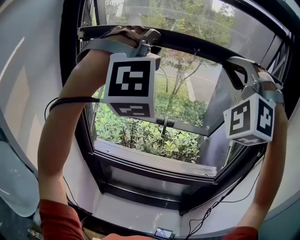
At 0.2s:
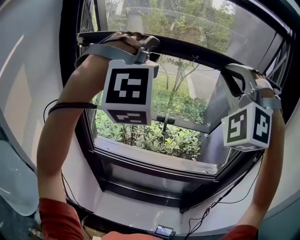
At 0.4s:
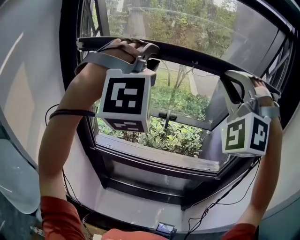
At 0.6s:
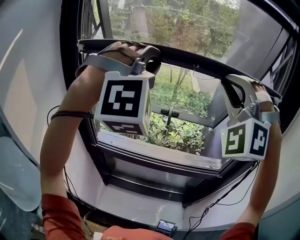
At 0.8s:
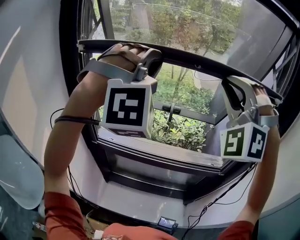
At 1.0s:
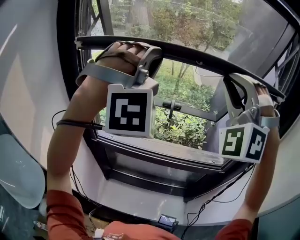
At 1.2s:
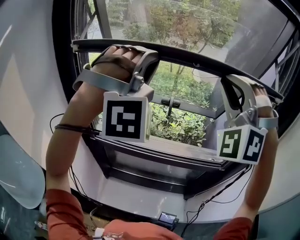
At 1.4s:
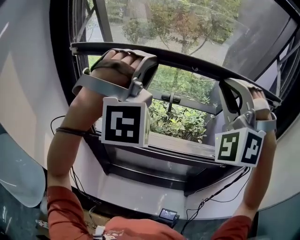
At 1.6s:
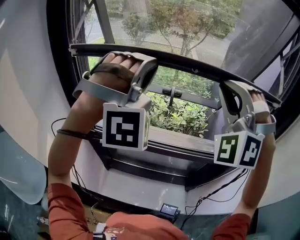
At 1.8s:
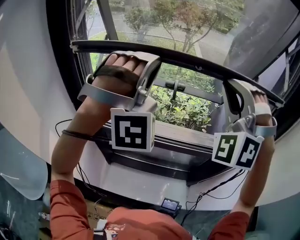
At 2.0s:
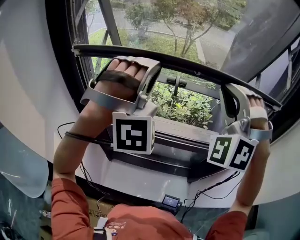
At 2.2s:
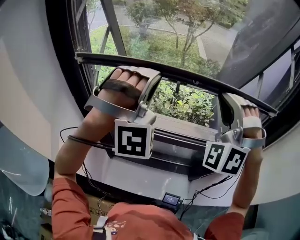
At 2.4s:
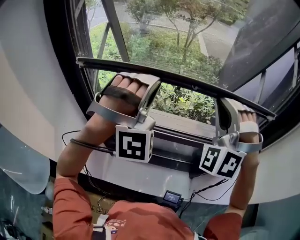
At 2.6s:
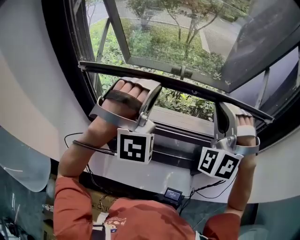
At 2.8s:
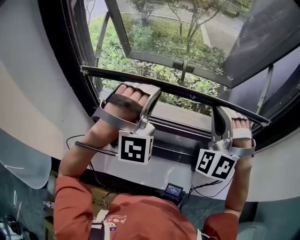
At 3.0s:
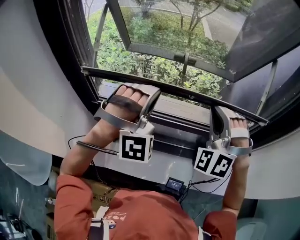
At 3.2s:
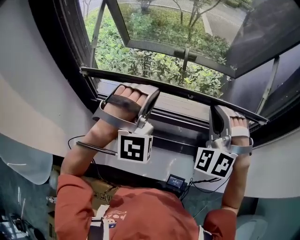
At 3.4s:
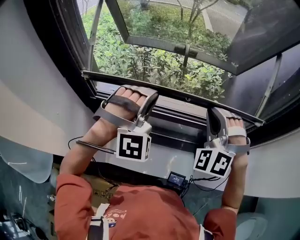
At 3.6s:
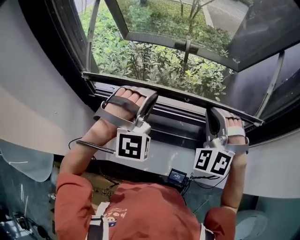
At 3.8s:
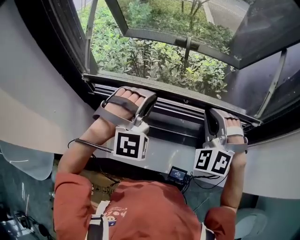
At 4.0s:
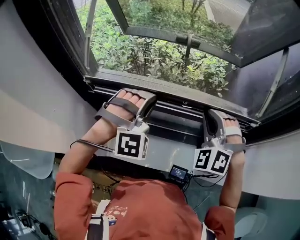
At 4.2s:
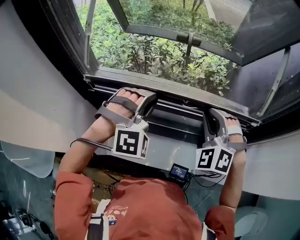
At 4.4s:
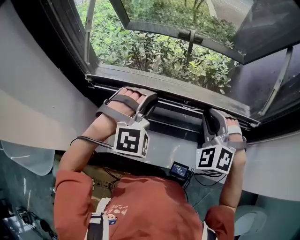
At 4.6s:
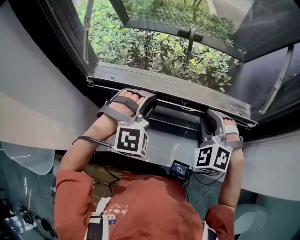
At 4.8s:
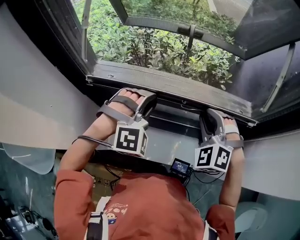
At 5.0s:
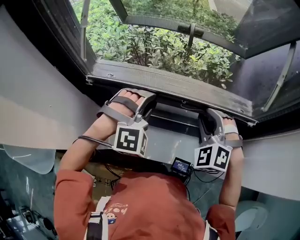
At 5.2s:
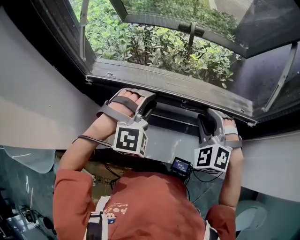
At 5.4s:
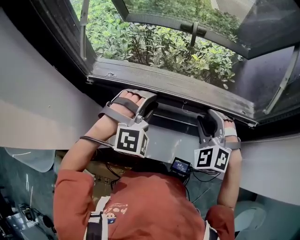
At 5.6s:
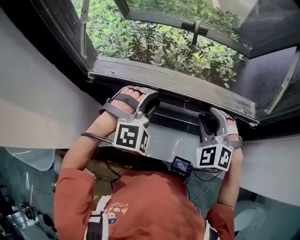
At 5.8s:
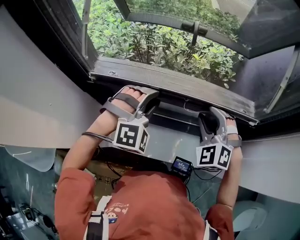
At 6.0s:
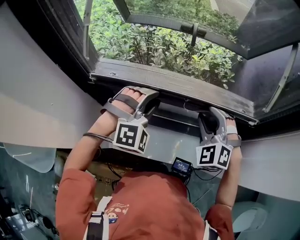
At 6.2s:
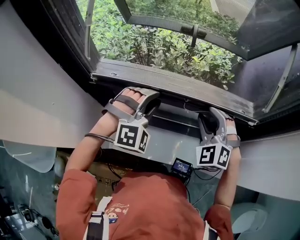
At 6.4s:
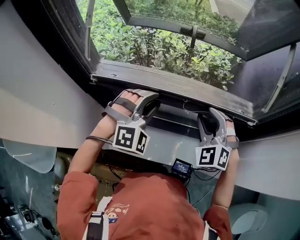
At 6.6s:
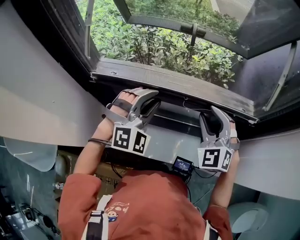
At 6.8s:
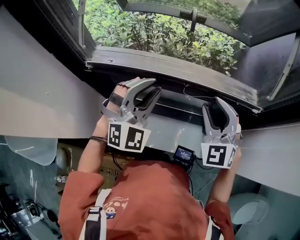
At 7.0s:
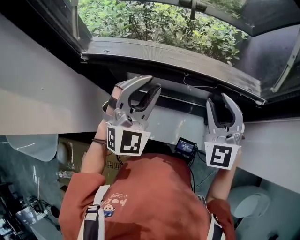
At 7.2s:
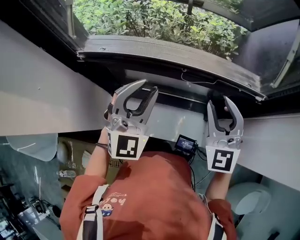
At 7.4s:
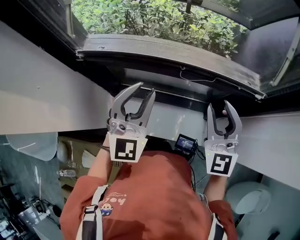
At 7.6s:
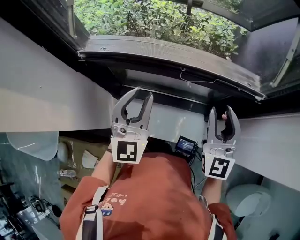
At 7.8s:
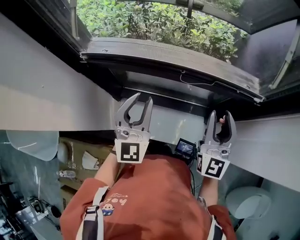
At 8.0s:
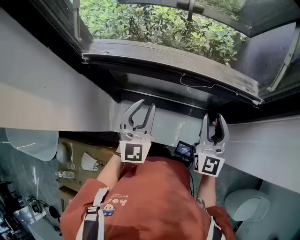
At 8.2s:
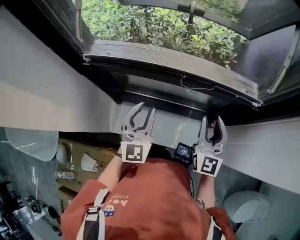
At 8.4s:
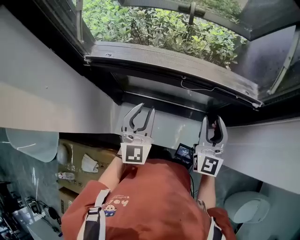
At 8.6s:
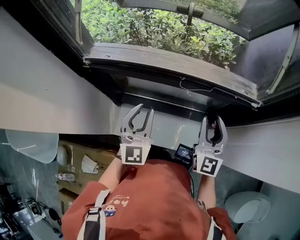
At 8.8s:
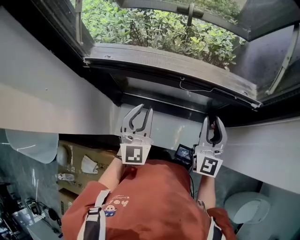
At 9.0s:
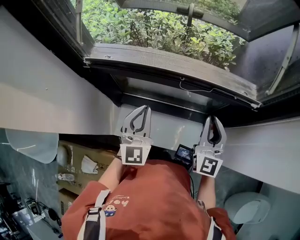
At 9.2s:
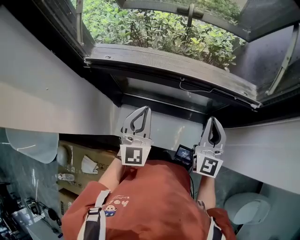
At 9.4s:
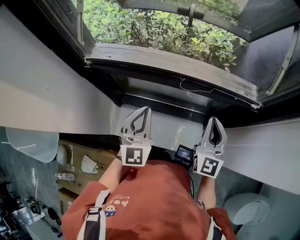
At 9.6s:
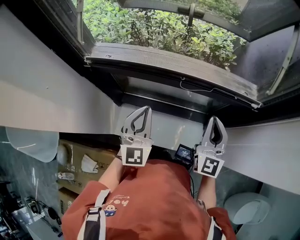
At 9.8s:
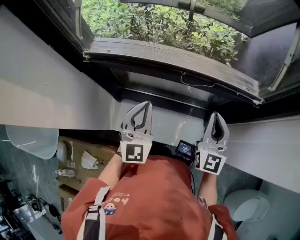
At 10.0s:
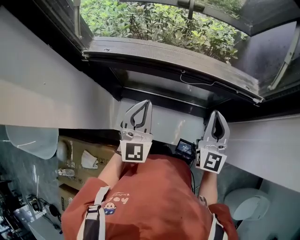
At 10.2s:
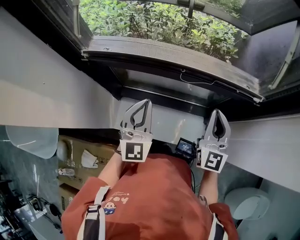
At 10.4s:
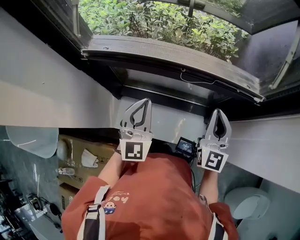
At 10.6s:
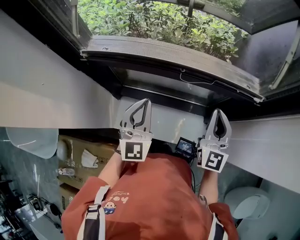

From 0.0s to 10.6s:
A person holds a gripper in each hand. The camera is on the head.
From 0.0s to 1.6s: The grippers both shift downward by some 15 cm.
From 1.6s to 3.0s: Both grippers move downward, roughly 15 cm.
From 3.0s to 4.6s: The two grippers go about 15 cm downward. The left gripper swivels approximately 30 degrees, while the right gripper changes its angle by some 30 degrees.
From 4.6s to 6.0s: The right gripper opens up.
From 6.0s to 7.6s: The left gripper is displaced backward by roughly 10 cm, and rolls counterclockwise, seen from behind, by some 50 degrees. Meanwhile the right gripper shifts some 10 cm backward and to the right, and points its fingers some 30 degrees further upward.
From 7.6s to 9.0s: Both grippers travel together downward, some 5 cm. The left gripper closes up. Meanwhile the right gripper closes.
From 9.0s to 10.6s: Both grippers stay about where they are.

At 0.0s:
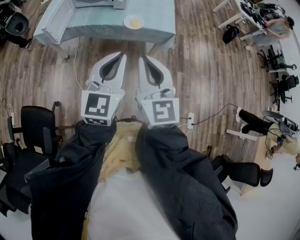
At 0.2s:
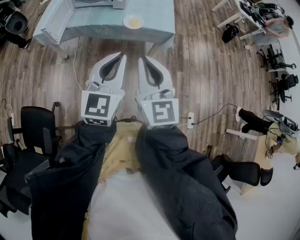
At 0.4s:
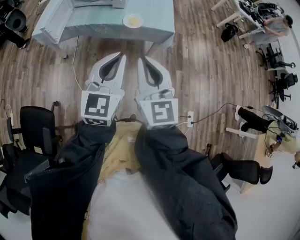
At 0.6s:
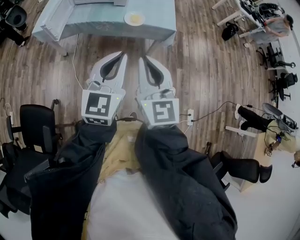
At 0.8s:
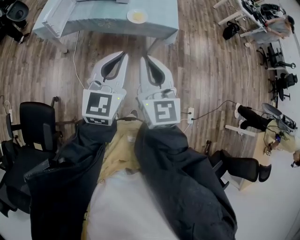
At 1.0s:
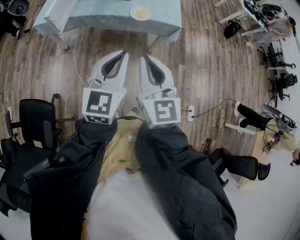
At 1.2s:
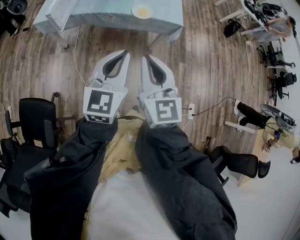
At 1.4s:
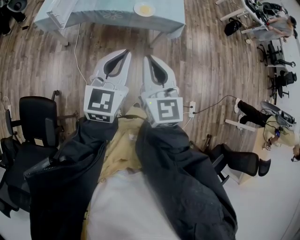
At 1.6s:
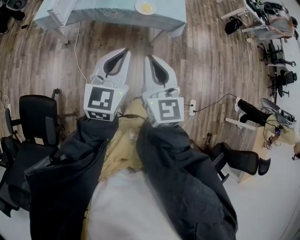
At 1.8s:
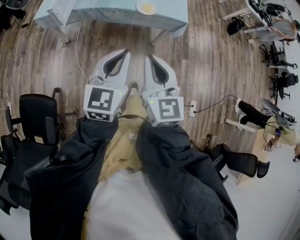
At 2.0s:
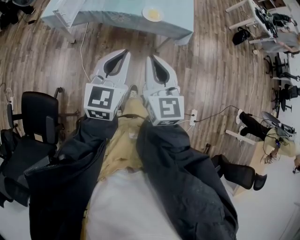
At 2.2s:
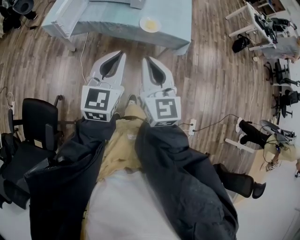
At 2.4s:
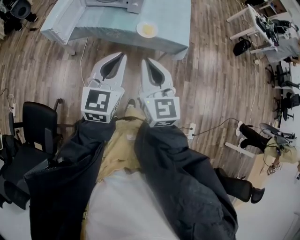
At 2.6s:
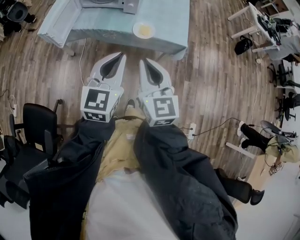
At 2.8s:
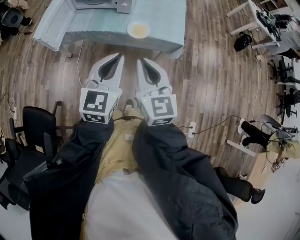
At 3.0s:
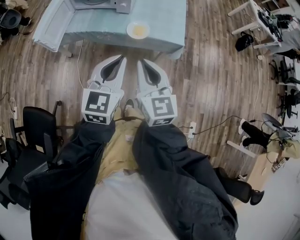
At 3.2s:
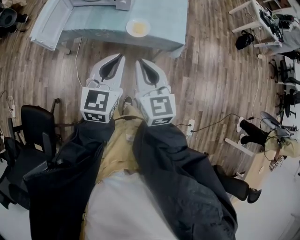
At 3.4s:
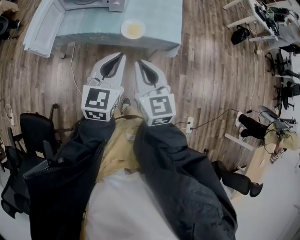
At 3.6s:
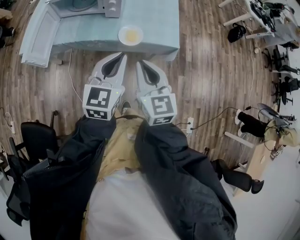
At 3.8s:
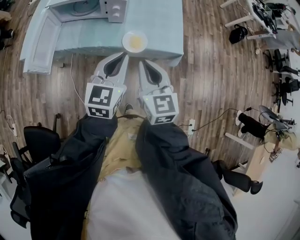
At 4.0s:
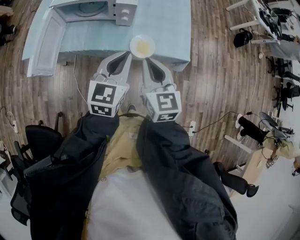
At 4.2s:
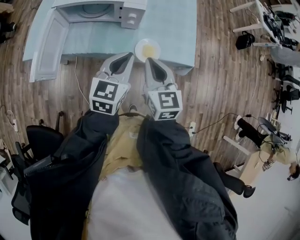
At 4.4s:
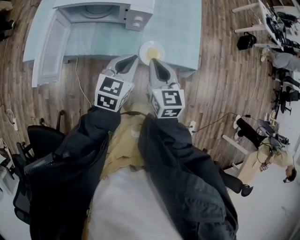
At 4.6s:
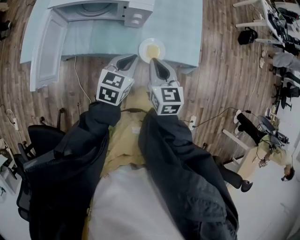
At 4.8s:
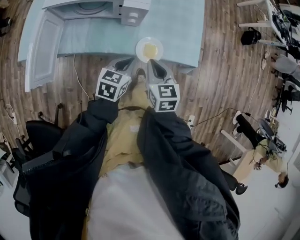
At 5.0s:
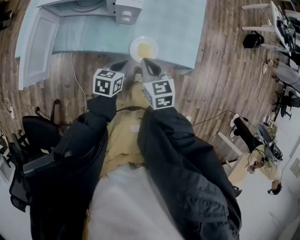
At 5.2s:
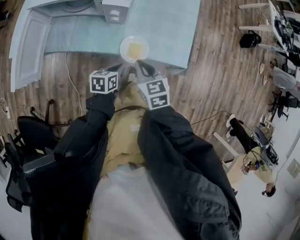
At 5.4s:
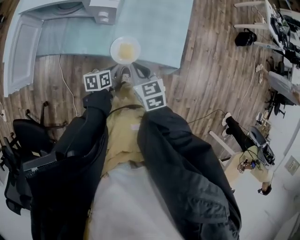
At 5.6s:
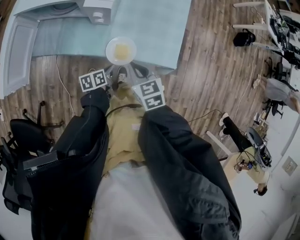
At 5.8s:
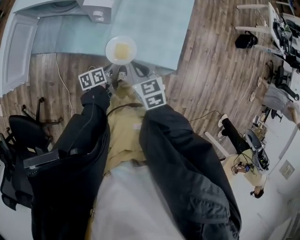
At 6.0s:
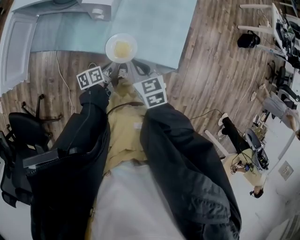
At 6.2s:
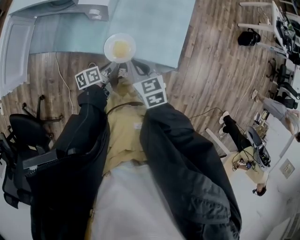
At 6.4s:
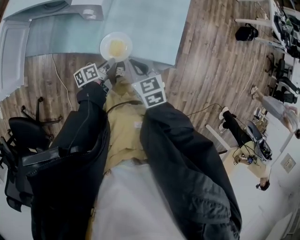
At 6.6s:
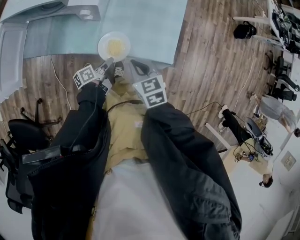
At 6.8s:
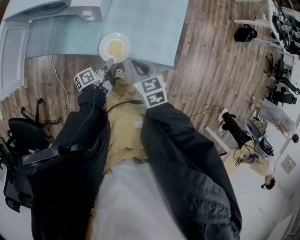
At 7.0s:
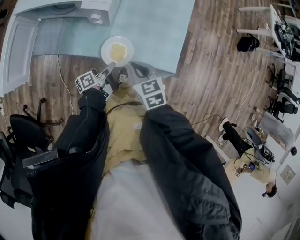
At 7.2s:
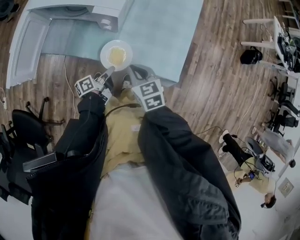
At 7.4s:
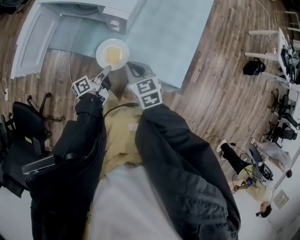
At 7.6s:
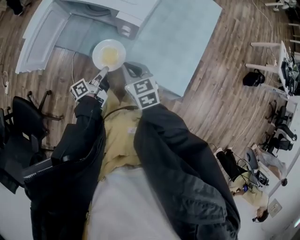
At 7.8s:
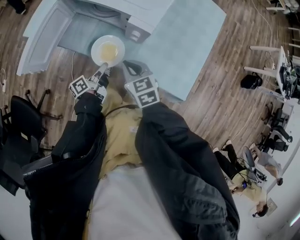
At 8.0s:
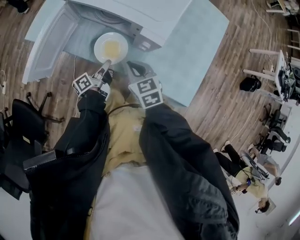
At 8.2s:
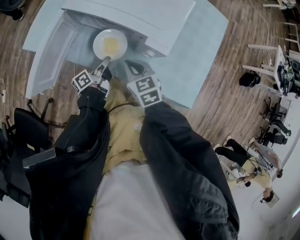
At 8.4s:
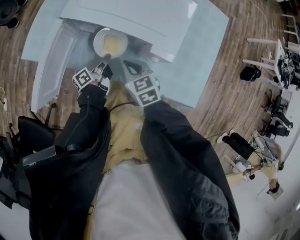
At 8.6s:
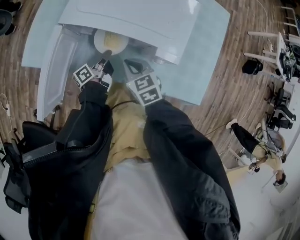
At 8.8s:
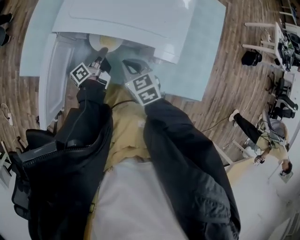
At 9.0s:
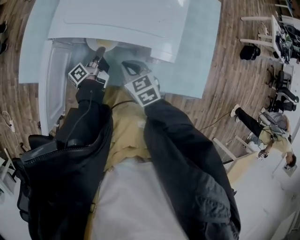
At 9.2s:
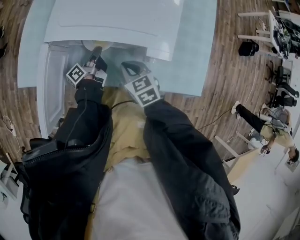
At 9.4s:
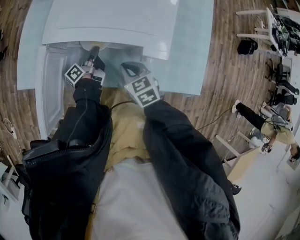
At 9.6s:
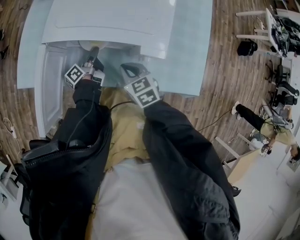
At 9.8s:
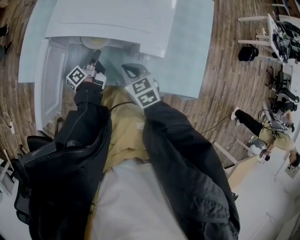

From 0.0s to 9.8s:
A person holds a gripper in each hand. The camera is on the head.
From 0.0s to 1.4s: The two grippers go some 5 cm to the left.
From 1.4s to 2.8s: Both grippers move forward and to the right, some 15 cm.
From 2.8s to 4.2s: The grippers both shift forward by approximately 20 cm.
From 4.2s to 5.6s: The left gripper heads downward, covering some 30 cm, and twists roughly 50 degrees counterclockwise, seen from behind. The right gripper shifts roughly 20 cm downward and to the right, and turns by roughly 30 degrees.
From 5.6s to 7.0s: The left gripper turns by about 30 degrees, and opens, then closes once more.
From 7.0s to 8.4s: The right gripper travels to the left and forward by approximately 30 cm. The left gripper travels forward and to the left by some 30 cm.
From 8.4s to 9.8s: The left gripper shifts some 5 cm forward, and opens up.

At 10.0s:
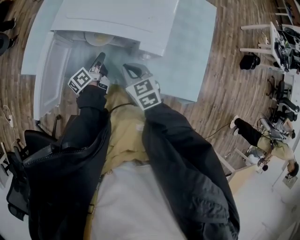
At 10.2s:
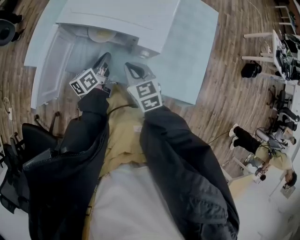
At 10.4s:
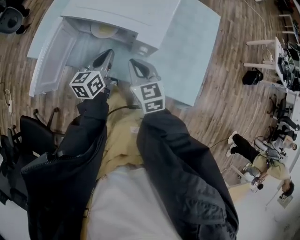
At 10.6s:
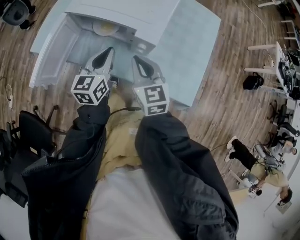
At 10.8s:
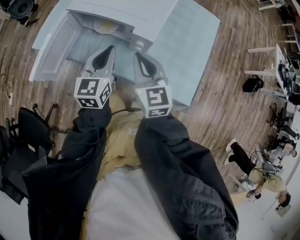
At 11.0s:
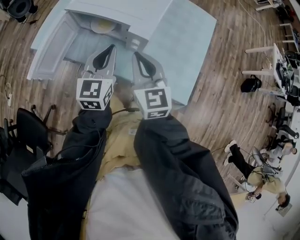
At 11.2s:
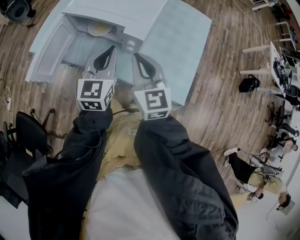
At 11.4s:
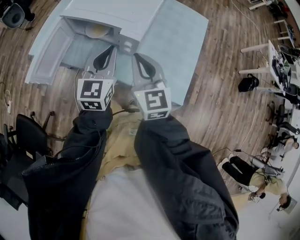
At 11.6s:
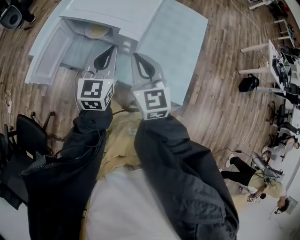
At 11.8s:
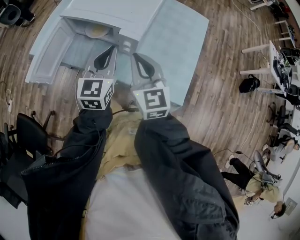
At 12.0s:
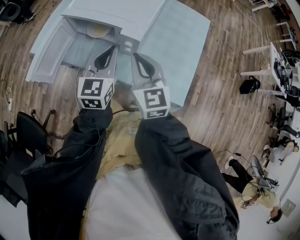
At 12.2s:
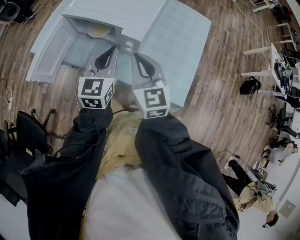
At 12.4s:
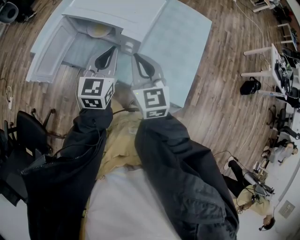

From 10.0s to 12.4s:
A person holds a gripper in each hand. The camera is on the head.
From 10.0s to 11.2s: The left gripper heads upward, backward and to the right, covering some 30 cm, and twists roughly 70 degrees clockwise, seen from behind. Meanwhile the right gripper goes roughly 20 cm upward, to the right and backward, and turns by approximately 30 degrees.
From 11.2s to 12.4s: The grippers make only small movements.

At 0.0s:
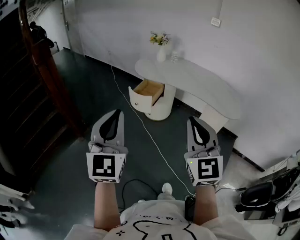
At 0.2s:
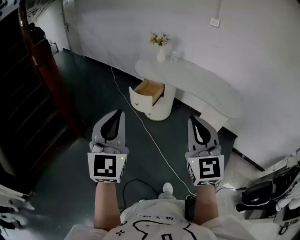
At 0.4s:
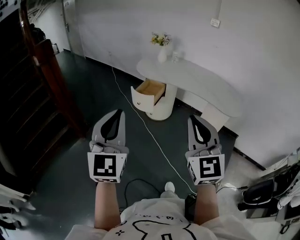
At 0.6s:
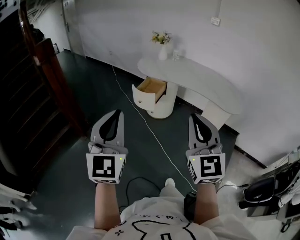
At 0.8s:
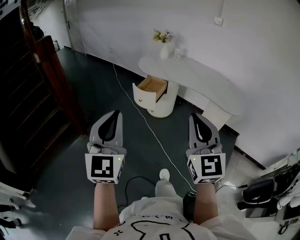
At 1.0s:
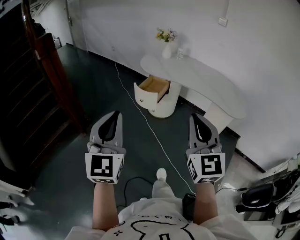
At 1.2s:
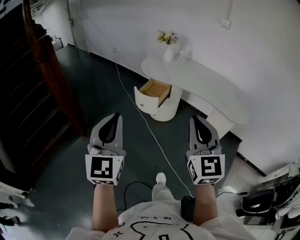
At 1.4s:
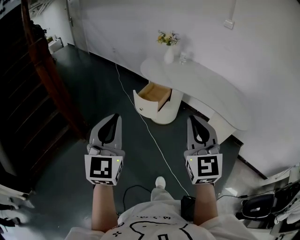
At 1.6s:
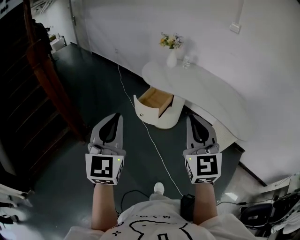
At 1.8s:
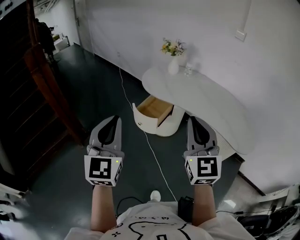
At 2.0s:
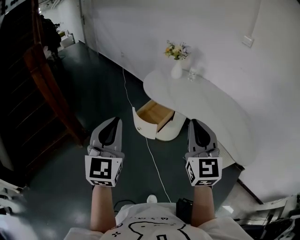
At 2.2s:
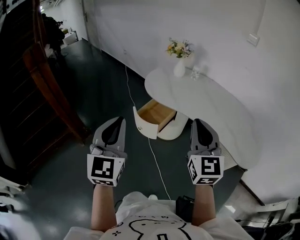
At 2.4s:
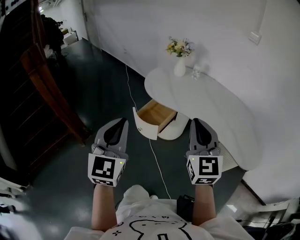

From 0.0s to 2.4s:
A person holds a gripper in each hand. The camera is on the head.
From 0.0s to 1.2s: The right gripper heads forward, covering approximately 5 cm, while the left gripper shifts by roughly 5 cm.
From 1.2s to 2.4s: Both grippers travel together forward, some 30 cm.
